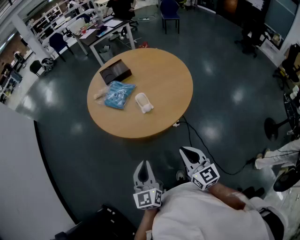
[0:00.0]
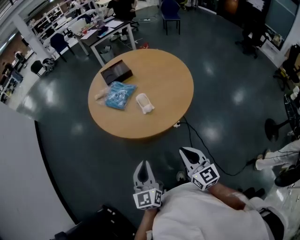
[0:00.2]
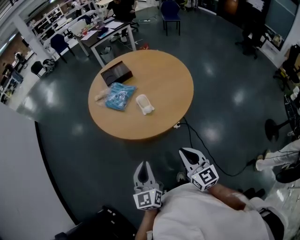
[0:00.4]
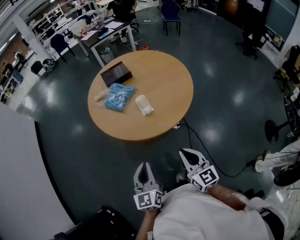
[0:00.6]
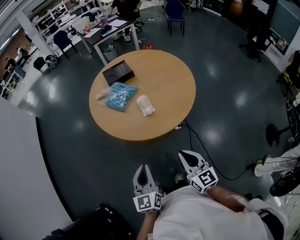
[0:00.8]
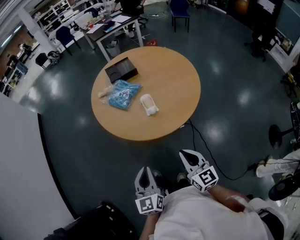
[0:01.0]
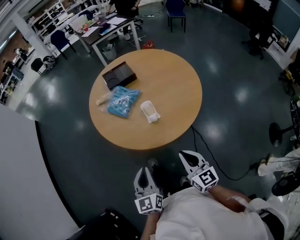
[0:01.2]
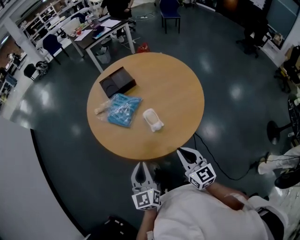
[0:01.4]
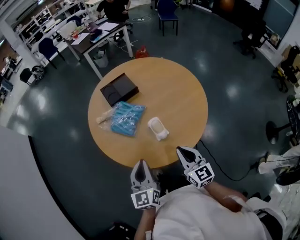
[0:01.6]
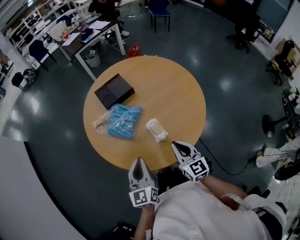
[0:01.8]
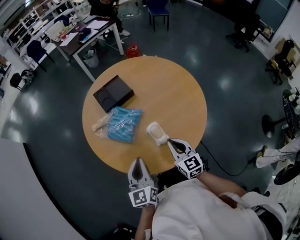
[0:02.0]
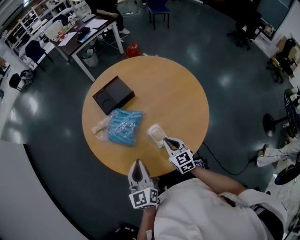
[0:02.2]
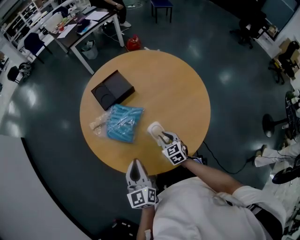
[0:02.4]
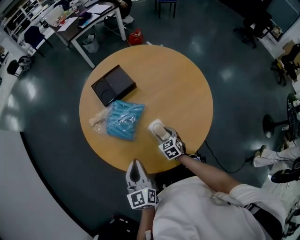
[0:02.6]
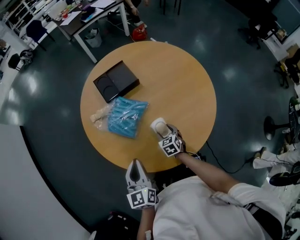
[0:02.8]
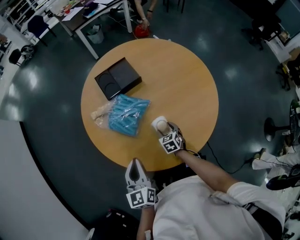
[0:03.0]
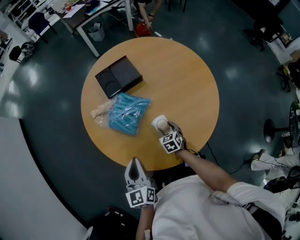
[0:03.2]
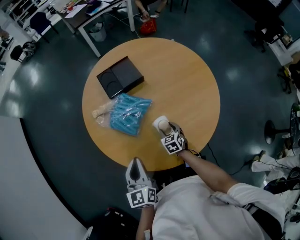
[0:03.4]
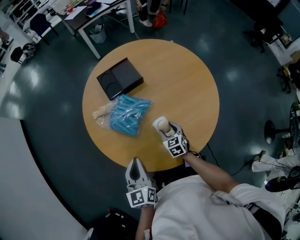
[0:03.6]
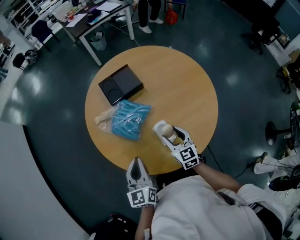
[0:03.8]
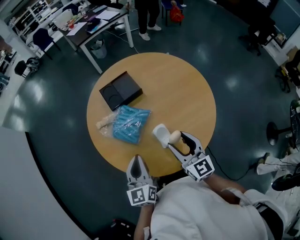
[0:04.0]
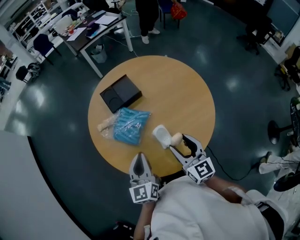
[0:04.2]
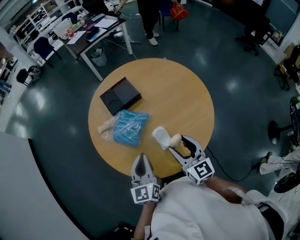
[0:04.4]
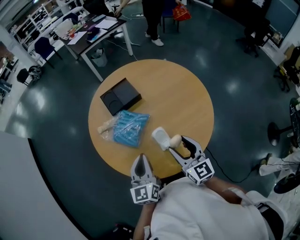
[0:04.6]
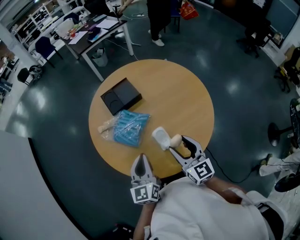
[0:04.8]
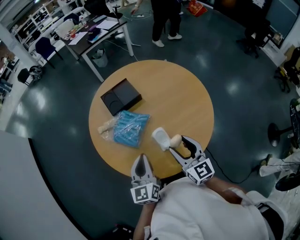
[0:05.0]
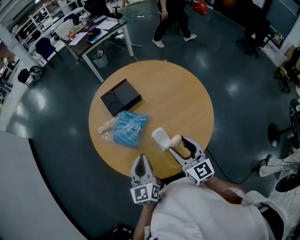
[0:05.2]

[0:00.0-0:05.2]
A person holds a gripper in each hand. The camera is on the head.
0:00.0 to 0:01.8: Both grippers move forward, roughly 30 cm.
0:01.8 to 0:03.4: The left gripper heads forward and downward, covering approximately 10 cm. Meanwhile the right gripper goes about 30 cm downward and forward, points its fingers roughly 40 degrees further downward, and opens up.
0:03.4 to 0:05.2: The left gripper moves upward and to the right, some 10 cm, while the right gripper is displaced upward by approximately 30 cm, and points its fingers about 40 degrees further upward.

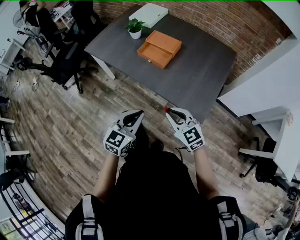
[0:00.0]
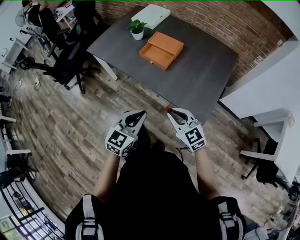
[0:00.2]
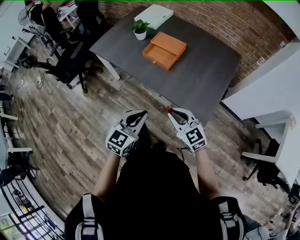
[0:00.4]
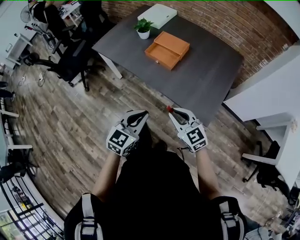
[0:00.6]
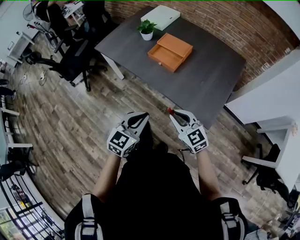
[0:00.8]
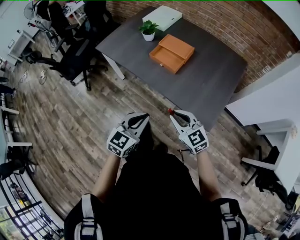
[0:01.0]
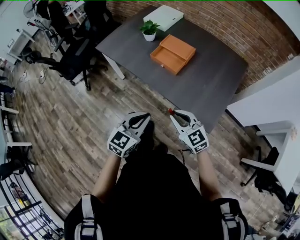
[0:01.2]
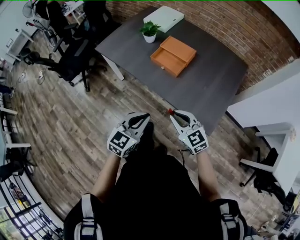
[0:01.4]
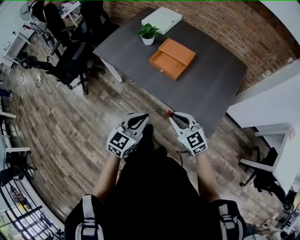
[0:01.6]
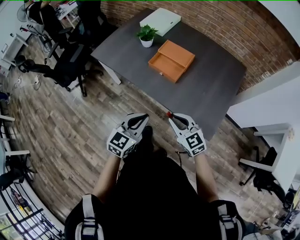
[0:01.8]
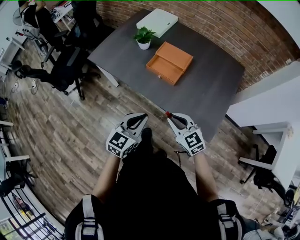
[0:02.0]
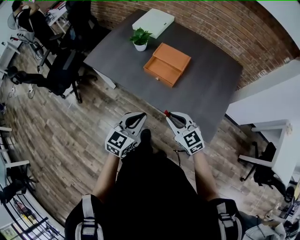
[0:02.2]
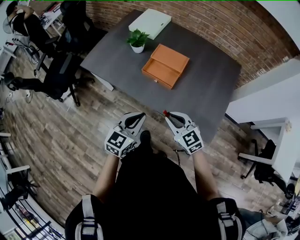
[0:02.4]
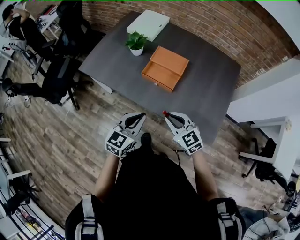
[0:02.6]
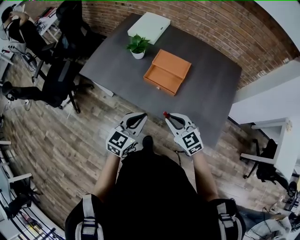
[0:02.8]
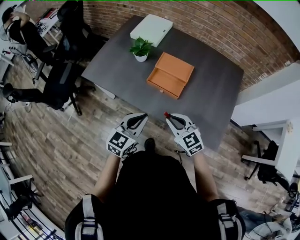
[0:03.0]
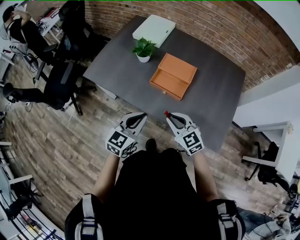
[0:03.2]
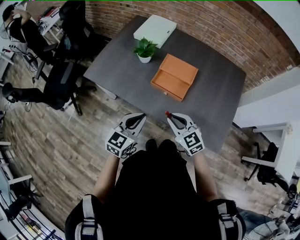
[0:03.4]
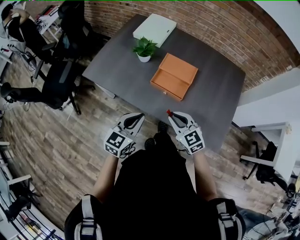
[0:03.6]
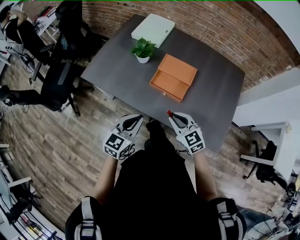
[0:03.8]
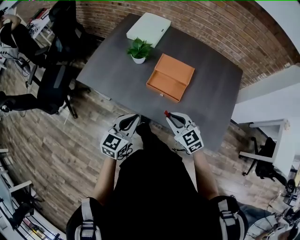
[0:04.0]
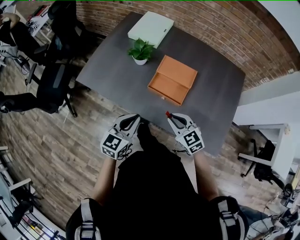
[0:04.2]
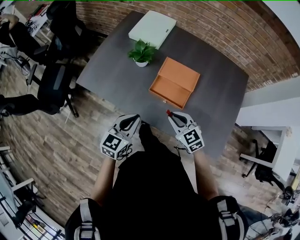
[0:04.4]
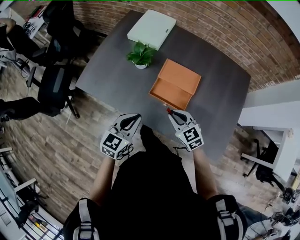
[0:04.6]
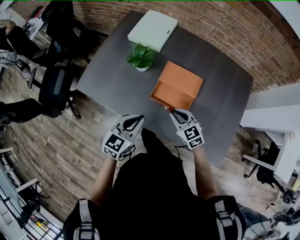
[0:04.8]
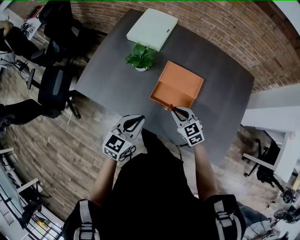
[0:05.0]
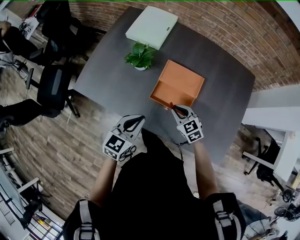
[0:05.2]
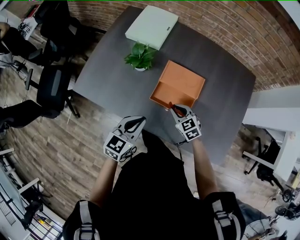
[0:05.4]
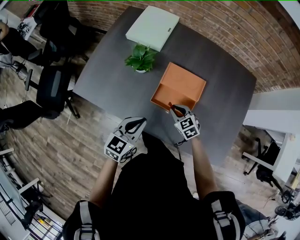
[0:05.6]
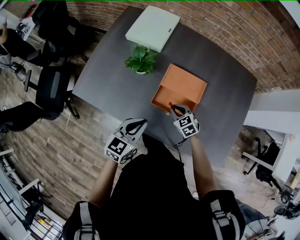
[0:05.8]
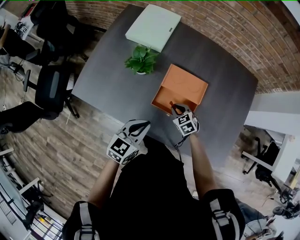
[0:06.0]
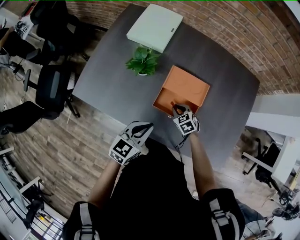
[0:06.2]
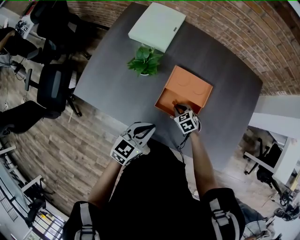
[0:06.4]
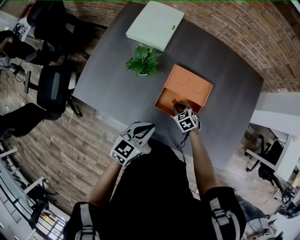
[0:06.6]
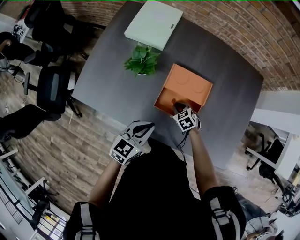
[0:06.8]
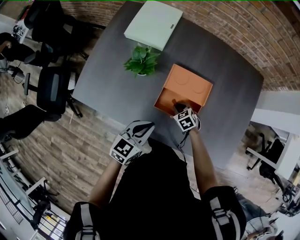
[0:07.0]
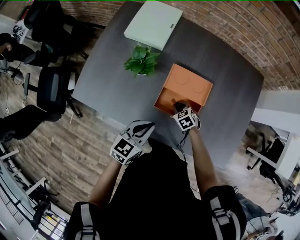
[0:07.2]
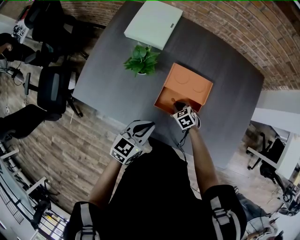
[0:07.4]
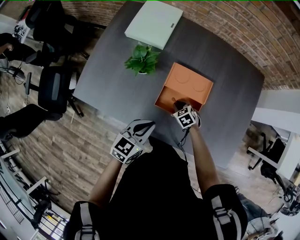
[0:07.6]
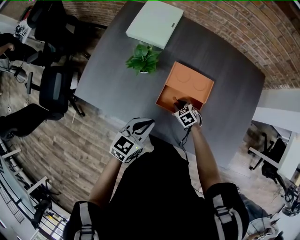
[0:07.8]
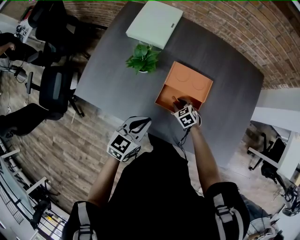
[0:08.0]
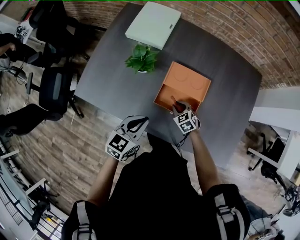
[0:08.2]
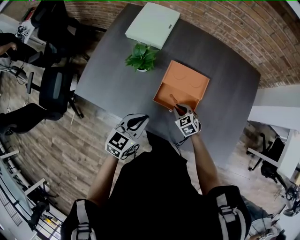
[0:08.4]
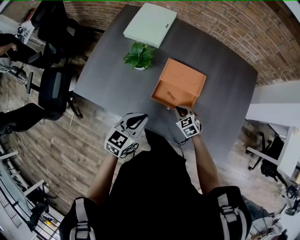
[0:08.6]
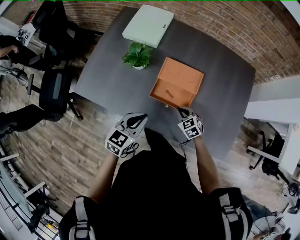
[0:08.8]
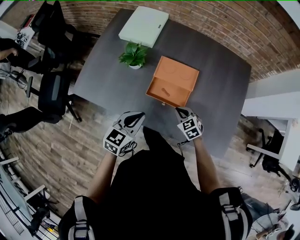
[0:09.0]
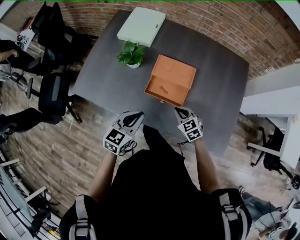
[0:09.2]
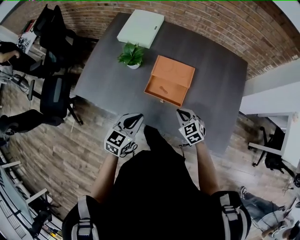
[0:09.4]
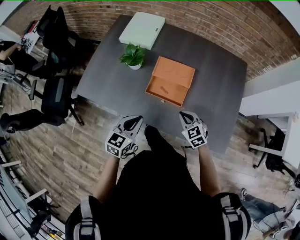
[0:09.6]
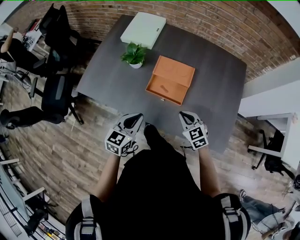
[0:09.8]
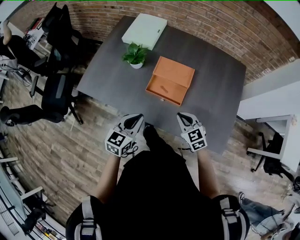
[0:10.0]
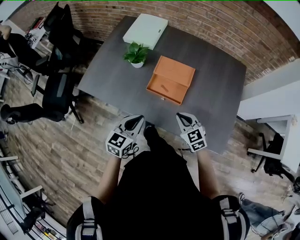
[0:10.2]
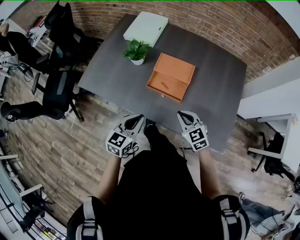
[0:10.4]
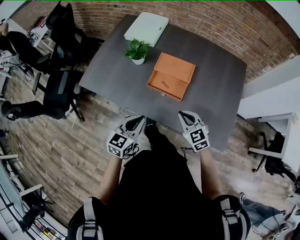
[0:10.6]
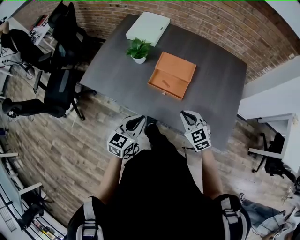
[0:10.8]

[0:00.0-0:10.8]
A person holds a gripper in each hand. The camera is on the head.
0:00.0 to 0:01.6: The grippers both shift forward by about 5 cm.
0:01.6 to 0:03.0: The left gripper shifts some 20 cm forward. Meanwhile the right gripper travels forward and to the left by approximately 20 cm.
0:03.0 to 0:04.6: The left gripper moves forward and to the left, approximately 15 cm; the right gripper travels forward by roughly 15 cm.
0:04.6 to 0:06.2: The right gripper heads downward and forward, covering about 20 cm, and turns by approximately 20 degrees; the left gripper moves forward, some 5 cm.
0:06.2 to 0:07.8: There are only small adjustments of the grippers.
0:07.8 to 0:09.2: The left gripper moves backward, approximately 5 cm; the right gripper travels upward, backward and to the right by roughly 20 cm.
0:09.2 to 0:10.8: The left gripper heads backward, covering some 10 cm; the right gripper travels backward and upward by roughly 15 cm.

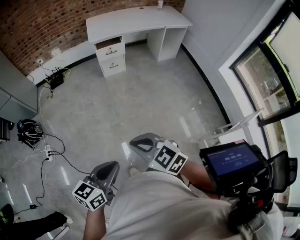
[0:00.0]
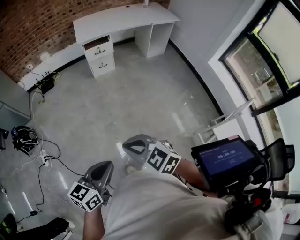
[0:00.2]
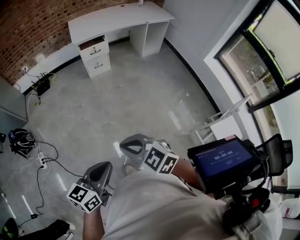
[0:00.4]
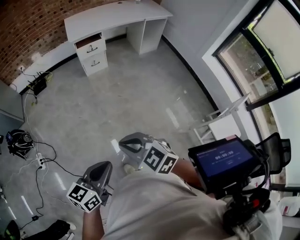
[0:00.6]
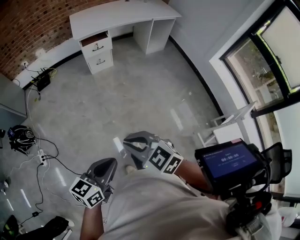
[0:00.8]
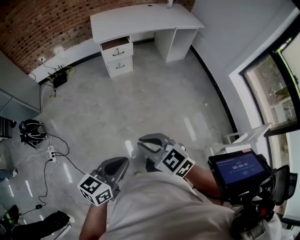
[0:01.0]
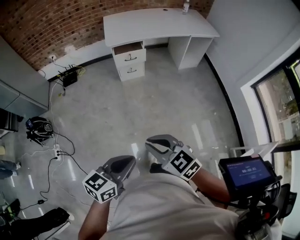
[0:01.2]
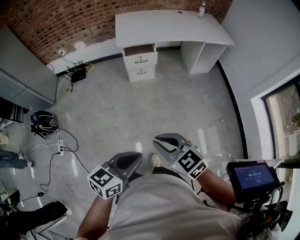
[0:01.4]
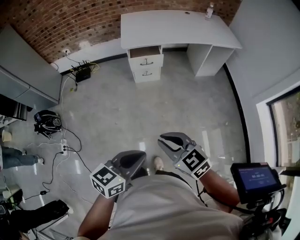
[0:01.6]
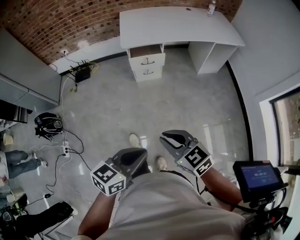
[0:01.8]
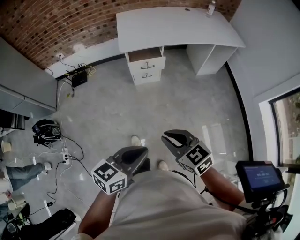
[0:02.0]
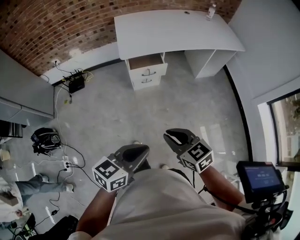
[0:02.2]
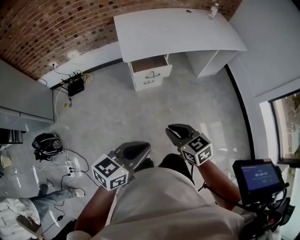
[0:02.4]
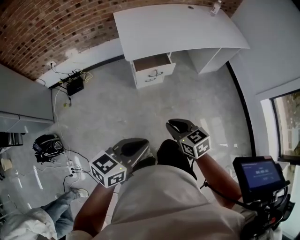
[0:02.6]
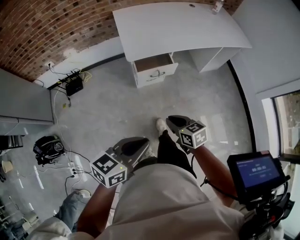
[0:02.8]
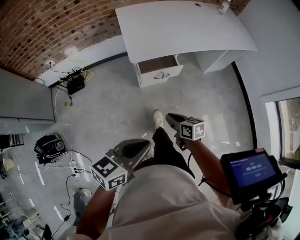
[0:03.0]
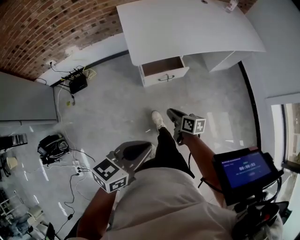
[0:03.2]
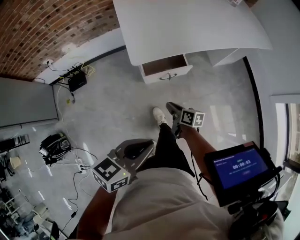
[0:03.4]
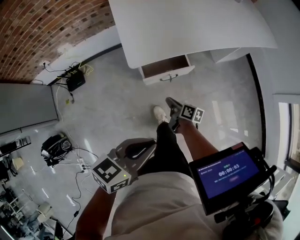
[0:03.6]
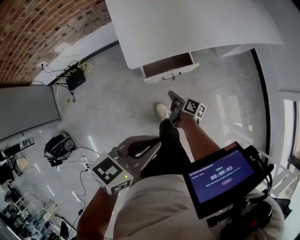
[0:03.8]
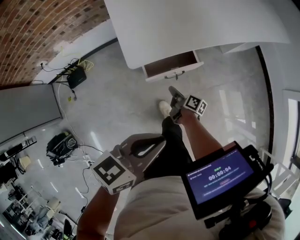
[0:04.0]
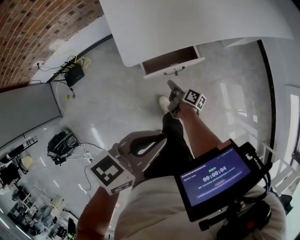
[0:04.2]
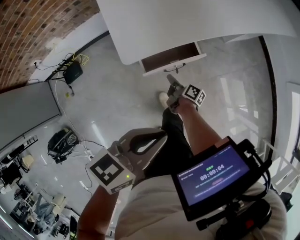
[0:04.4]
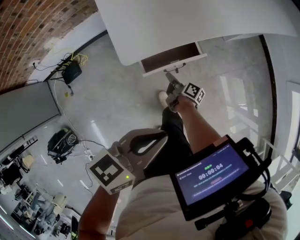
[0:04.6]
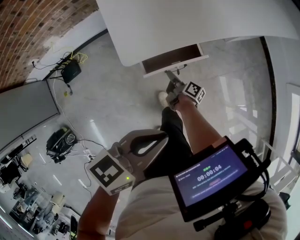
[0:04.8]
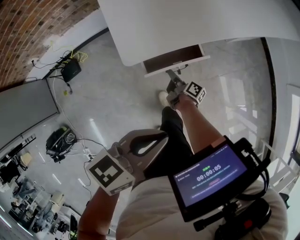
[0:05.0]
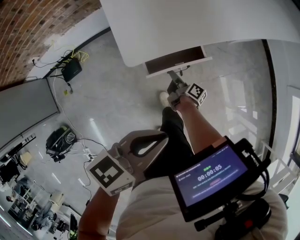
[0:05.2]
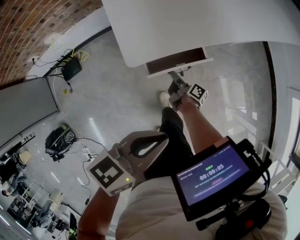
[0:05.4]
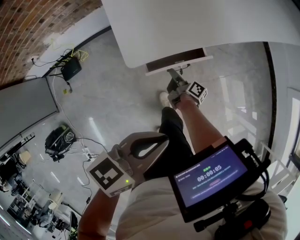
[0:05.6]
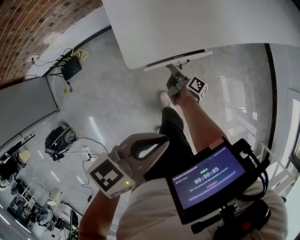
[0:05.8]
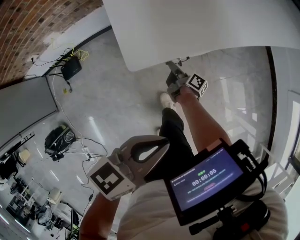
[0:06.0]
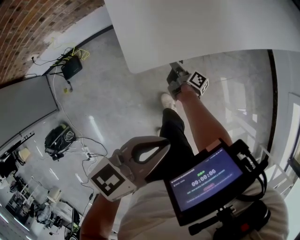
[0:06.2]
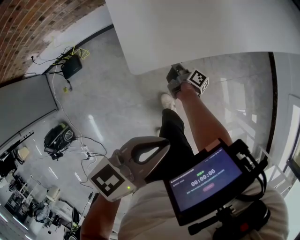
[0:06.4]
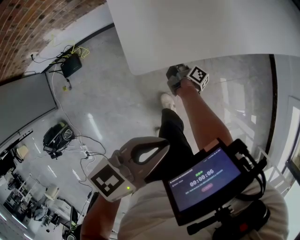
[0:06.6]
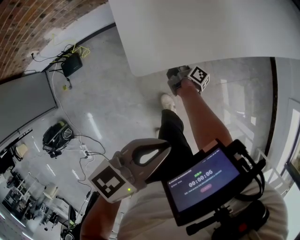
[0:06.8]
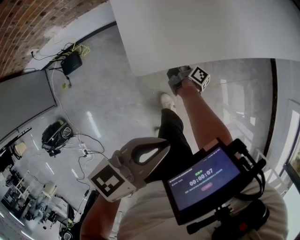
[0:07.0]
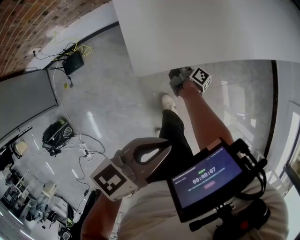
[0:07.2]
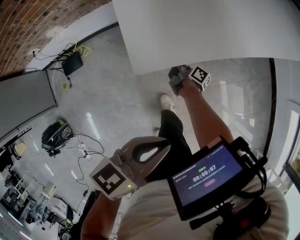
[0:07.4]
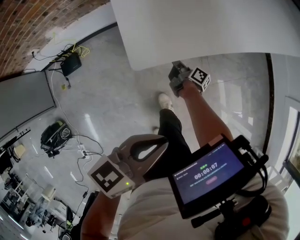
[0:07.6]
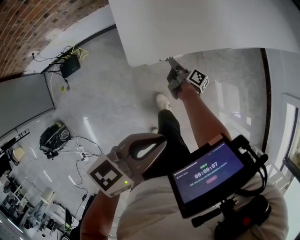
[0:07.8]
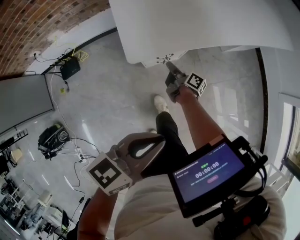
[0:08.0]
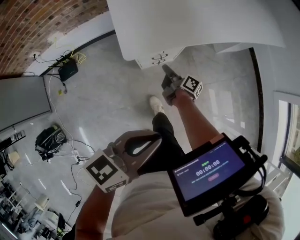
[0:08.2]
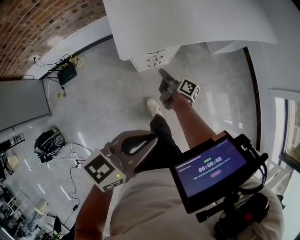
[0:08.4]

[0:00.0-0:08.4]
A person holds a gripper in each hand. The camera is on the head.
0:00.0 to 0:01.4: Both grippers move forward, roughly 25 cm.
0:01.4 to 0:02.8: The pair of grippers is taken forward and to the left, some 40 cm. The right gripper goes approximately 15 cm downward, and turns by approximately 40 degrees.
0:02.8 to 0:04.2: The right gripper travels forward and downward by roughly 40 cm, and rotates around the line of its fingers by some 60 degrees, clockwise from behind. The left gripper moves forward, approximately 25 cm.
0:04.2 to 0:05.6: The right gripper shifts approximately 5 cm forward.
0:05.6 to 0:07.0: The right gripper is displaced forward and to the left by approximately 10 cm.
0:07.0 to 0:08.4: The right gripper moves upward, backward and to the right, about 20 cm; the left gripper is displaced backward and upward by about 15 cm.
